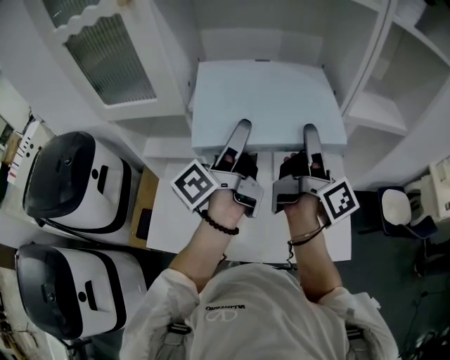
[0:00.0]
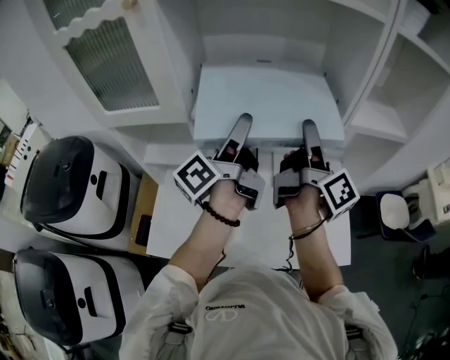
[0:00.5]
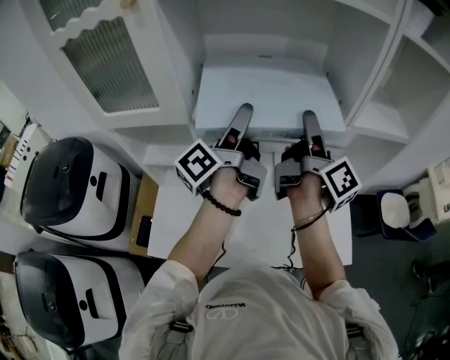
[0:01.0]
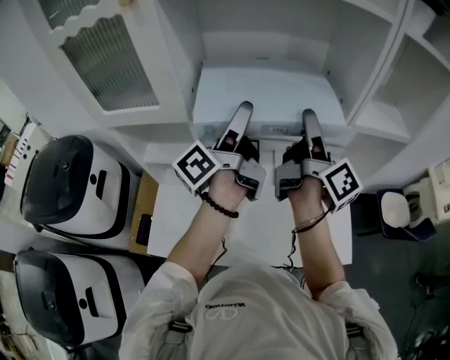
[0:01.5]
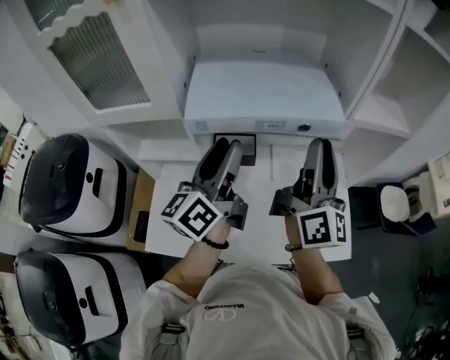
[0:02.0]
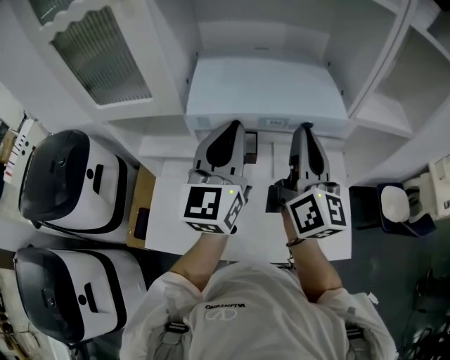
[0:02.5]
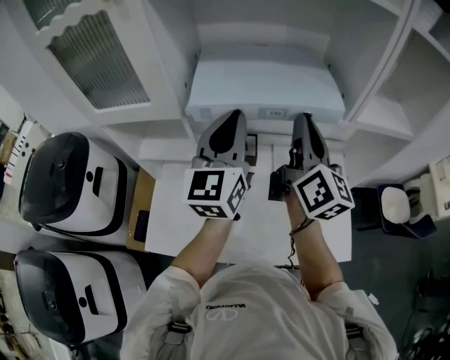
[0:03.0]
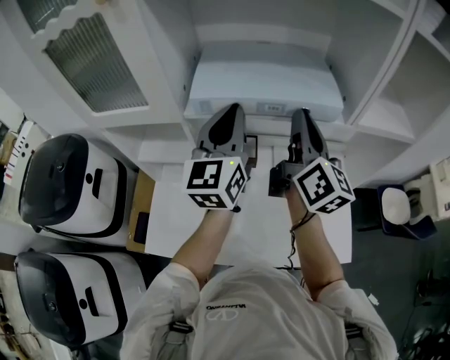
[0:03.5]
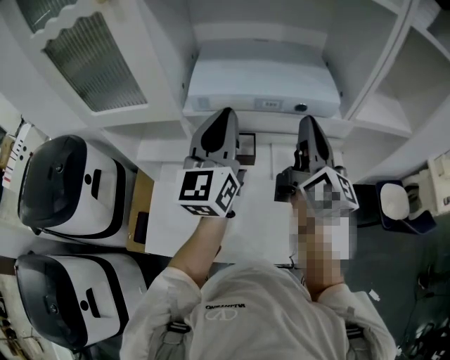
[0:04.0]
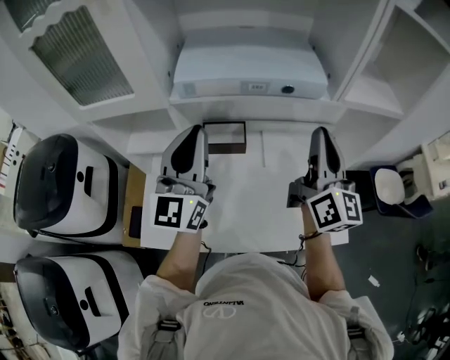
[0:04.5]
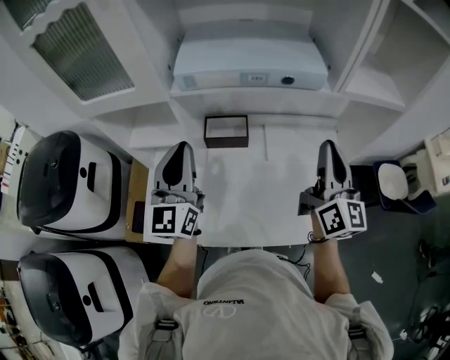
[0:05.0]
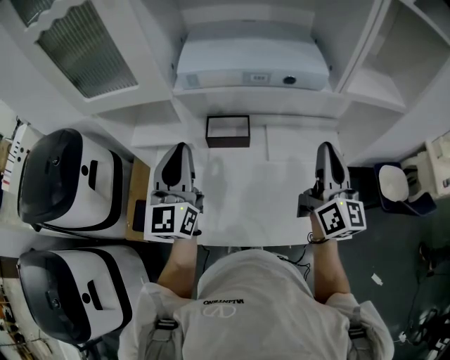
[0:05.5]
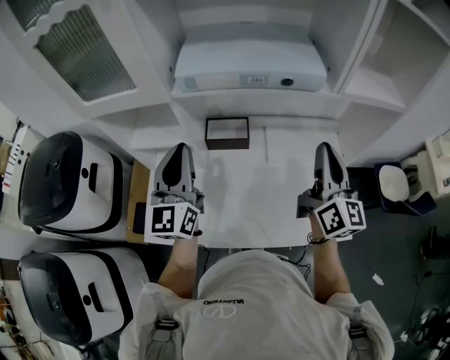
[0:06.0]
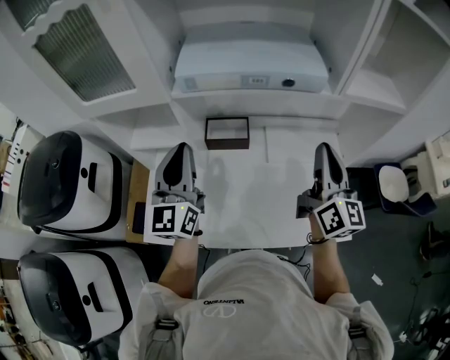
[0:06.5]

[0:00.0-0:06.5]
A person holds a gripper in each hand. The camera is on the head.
0:00.0 to 0:02.0: The right gripper goes forward and returns, about 5 cm each way, twists approximately 40 degrees counterclockwise, seen from behind, and closes up. The left gripper travels forward and back again, about 5 cm each way, and turns by roughly 40 degrees.
0:02.0 to 0:04.5: The left gripper goes forward and returns, about 10 cm each way, rotates around the line of its fingers by approximately 40 degrees, clockwise from behind, and closes up, while the right gripper travels forward and back again, roughly 10 cm each way.
0:04.5 to 0:06.5: The grippers both shift downward by some 5 cm.

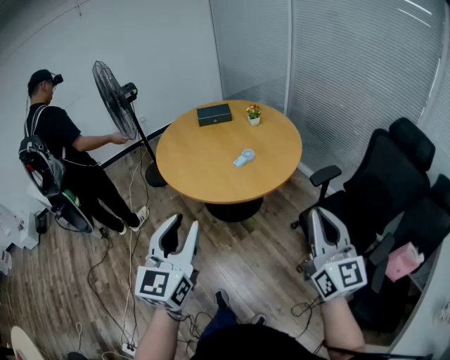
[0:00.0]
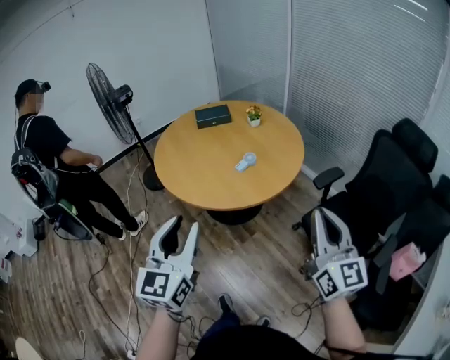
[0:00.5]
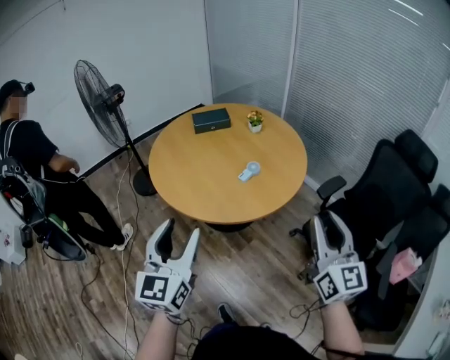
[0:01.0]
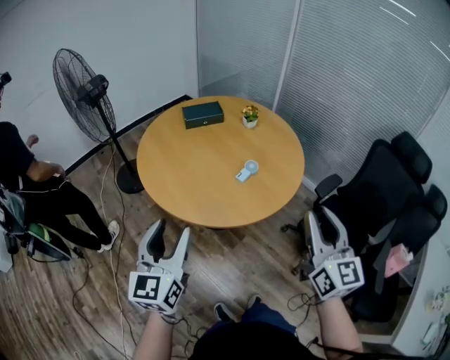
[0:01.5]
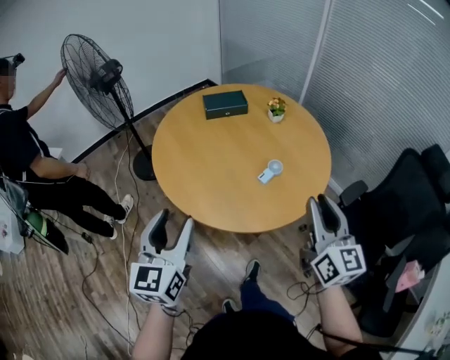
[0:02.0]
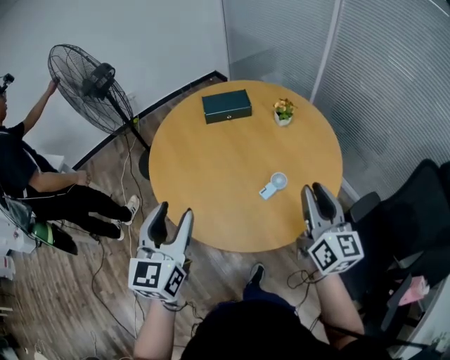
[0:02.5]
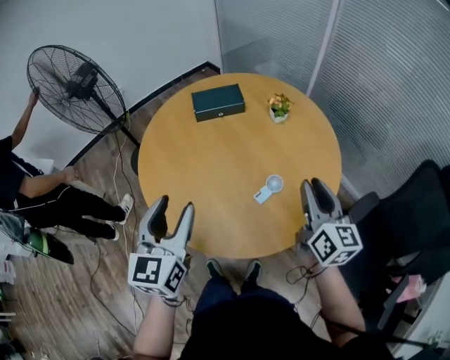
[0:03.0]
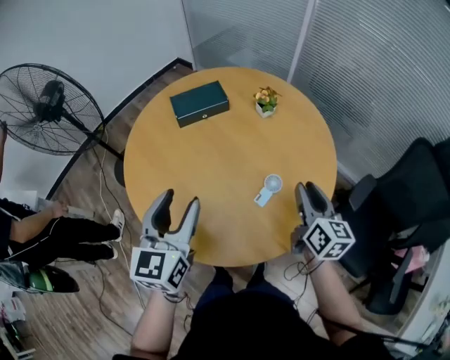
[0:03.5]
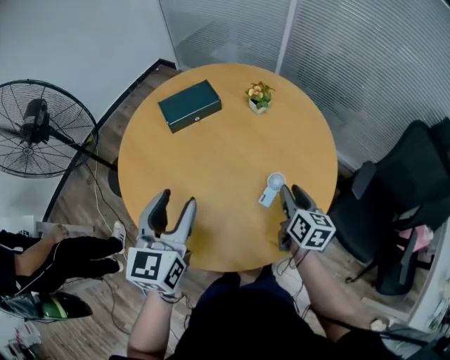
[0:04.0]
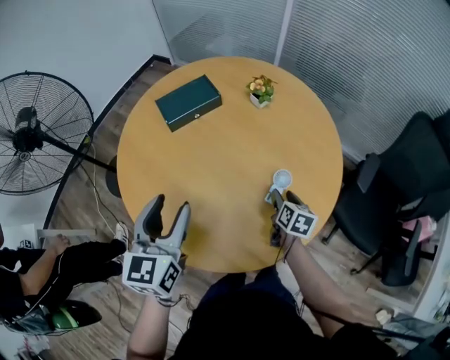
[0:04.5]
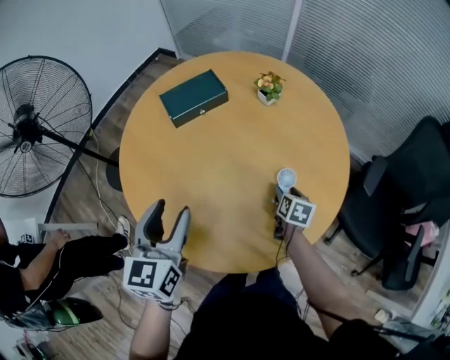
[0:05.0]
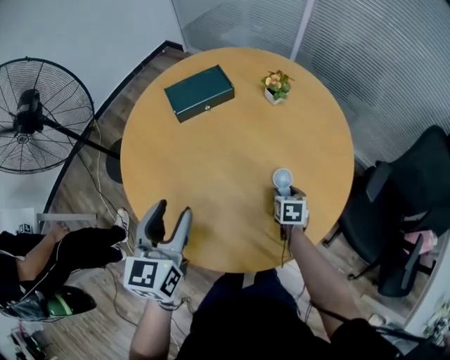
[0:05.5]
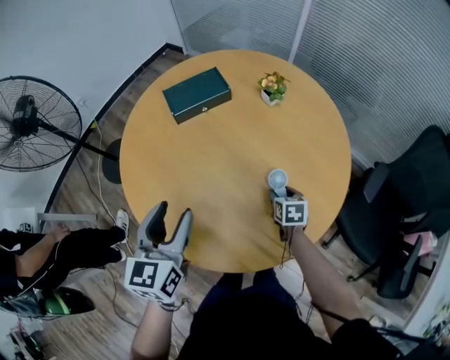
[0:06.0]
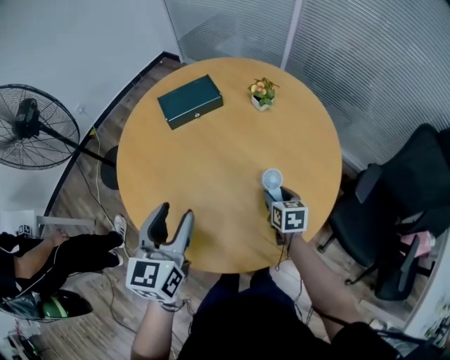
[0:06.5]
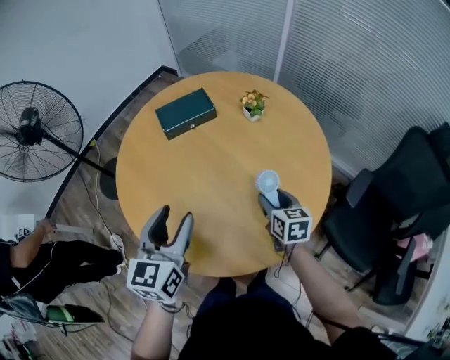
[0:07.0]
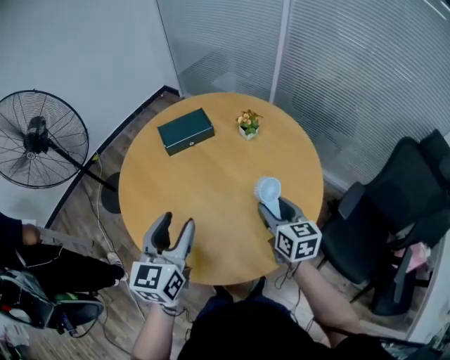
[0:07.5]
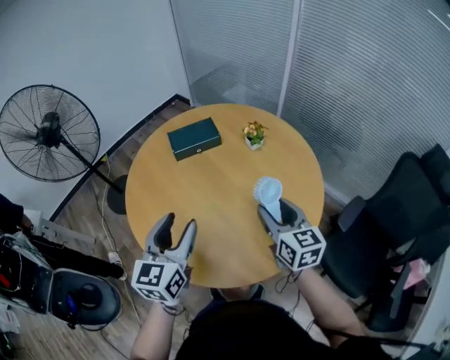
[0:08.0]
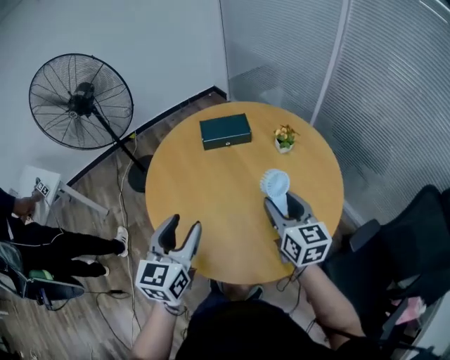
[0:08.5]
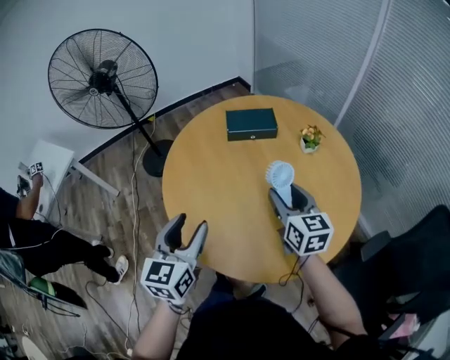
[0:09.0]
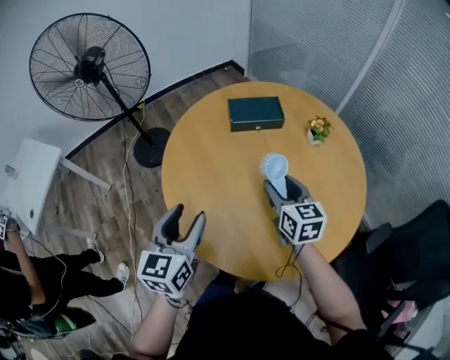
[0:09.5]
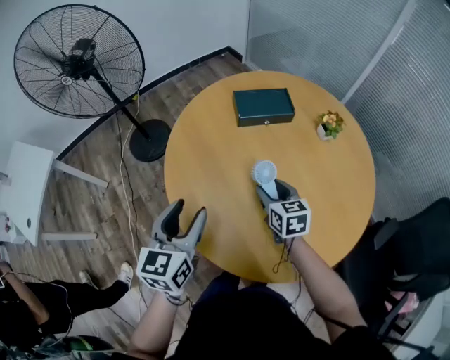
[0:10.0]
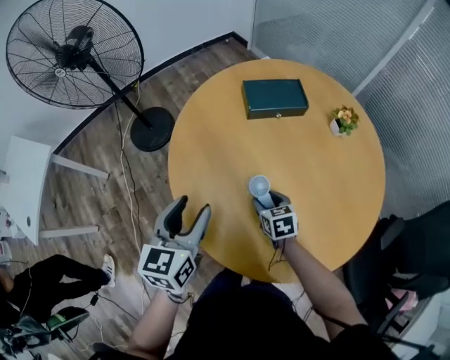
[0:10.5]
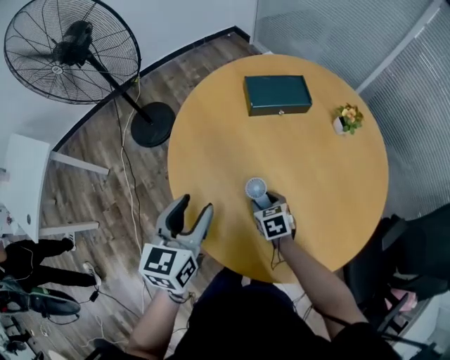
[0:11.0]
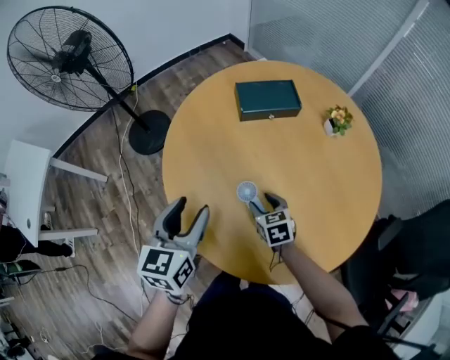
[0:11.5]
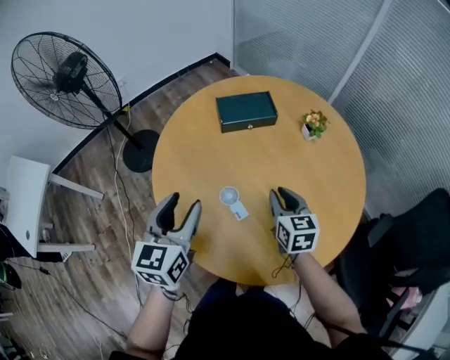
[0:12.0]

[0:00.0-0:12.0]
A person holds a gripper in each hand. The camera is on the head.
0:00.0 to 0:02.0: Both grippers move forward and to the left, approximately 40 cm. The left gripper opens. Meanwhile the right gripper opens.
0:02.0 to 0:04.0: The left gripper moves forward, approximately 35 cm, and turns by approximately 20 degrees, while the right gripper shifts roughly 40 cm forward and downward, and turns by roughly 40 degrees.
0:04.0 to 0:06.0: The left gripper shifts approximately 5 cm downward, while the right gripper heads downward, covering some 15 cm, and changes its angle by approximately 30 degrees.
0:06.0 to 0:08.0: The left gripper goes approximately 15 cm upward, to the right and backward. Meanwhile the right gripper heads upward, covering some 30 cm, and points its fingers approximately 40 degrees further upward.
0:08.0 to 0:10.0: The right gripper is displaced to the left, downward and forward by roughly 30 cm, and rotates some 20 degrees. Meanwhile the left gripper heads to the left, covering about 20 cm.
0:10.0 to 0:12.0: The left gripper moves about 5 cm; the right gripper shifts some 10 cm to the right, moves about 15 cm downward and comes back, and closes up.

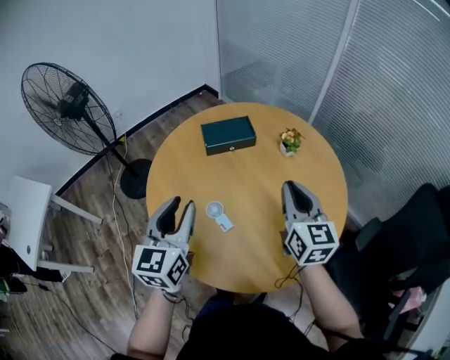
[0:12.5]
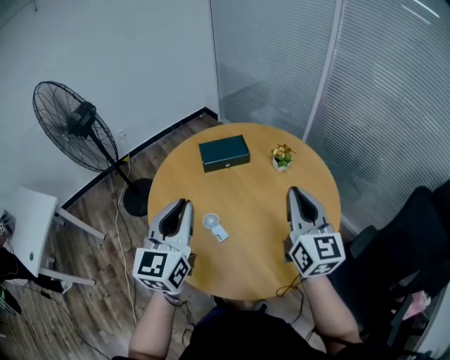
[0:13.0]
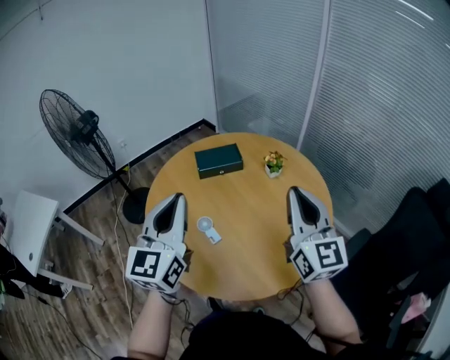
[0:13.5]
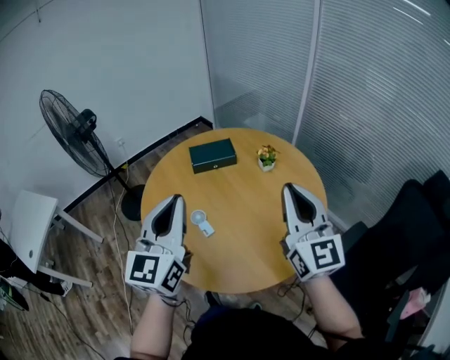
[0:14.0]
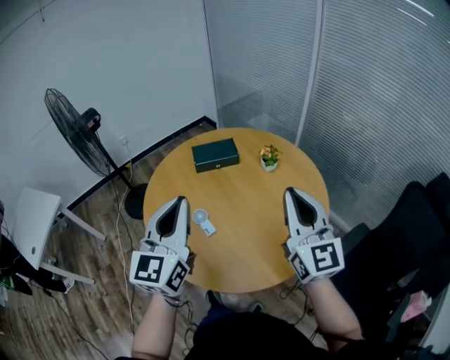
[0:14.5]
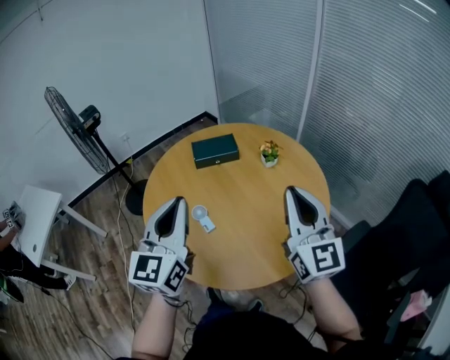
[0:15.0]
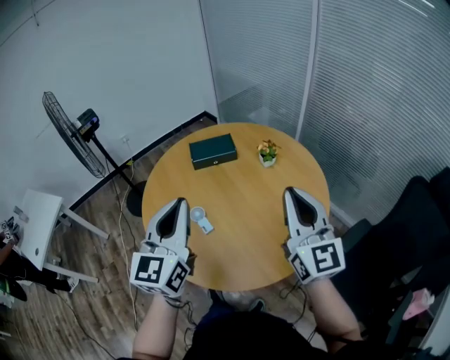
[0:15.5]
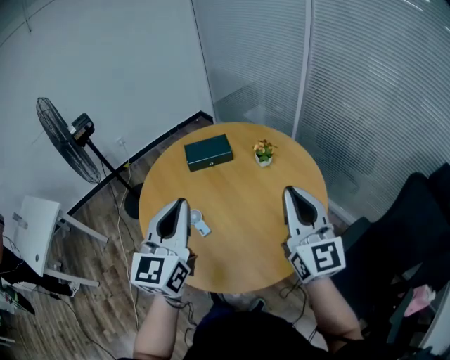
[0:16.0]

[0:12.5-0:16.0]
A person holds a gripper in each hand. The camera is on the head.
0:12.5 to 0:14.5: The right gripper shifts about 20 cm backward, upward and to the right, and turns by approximately 20 degrees, while the left gripper moves upward, to the right and backward, some 20 cm, and closes up.
0:14.5 to 0:16.0: The left gripper moves about 5 cm.

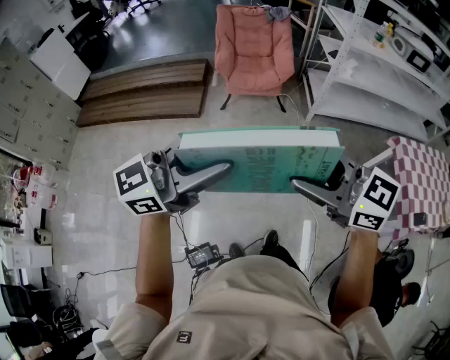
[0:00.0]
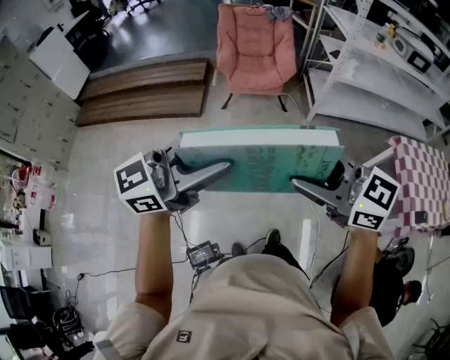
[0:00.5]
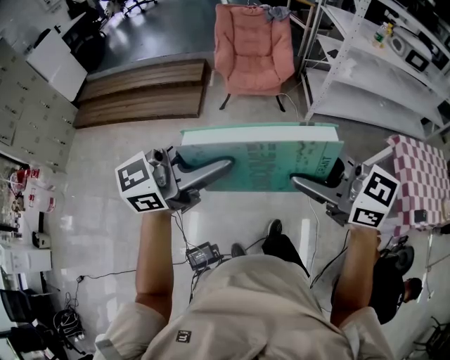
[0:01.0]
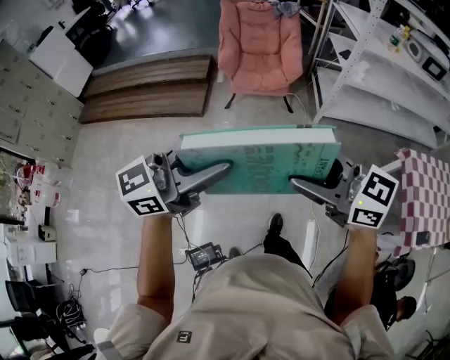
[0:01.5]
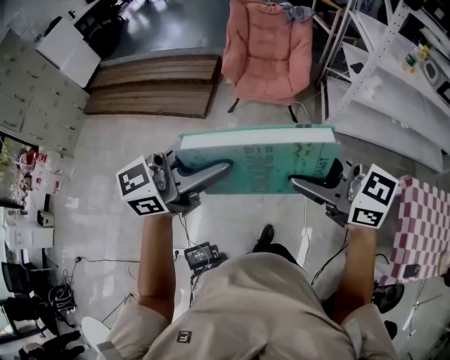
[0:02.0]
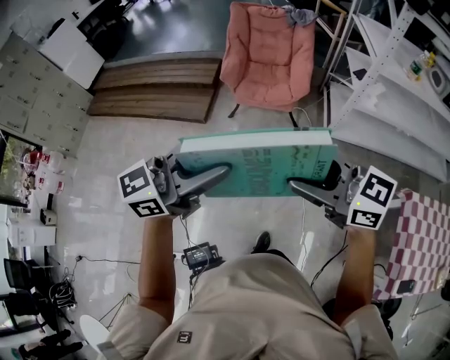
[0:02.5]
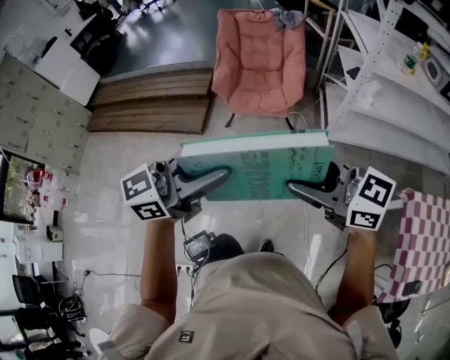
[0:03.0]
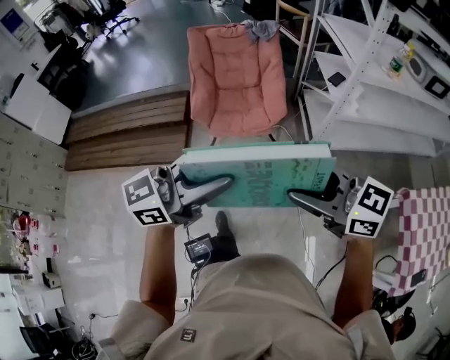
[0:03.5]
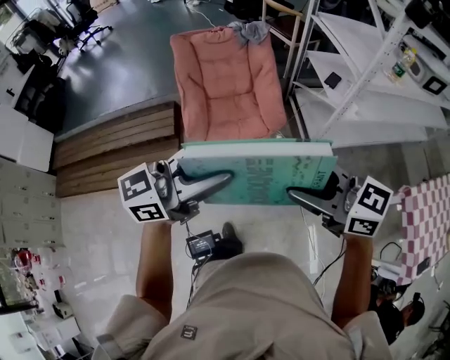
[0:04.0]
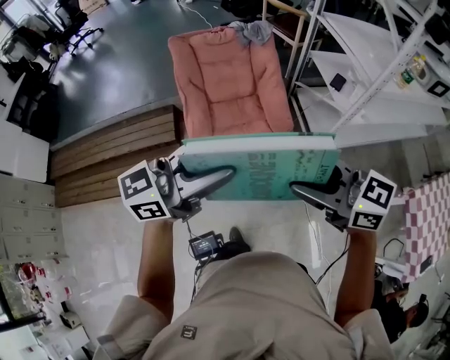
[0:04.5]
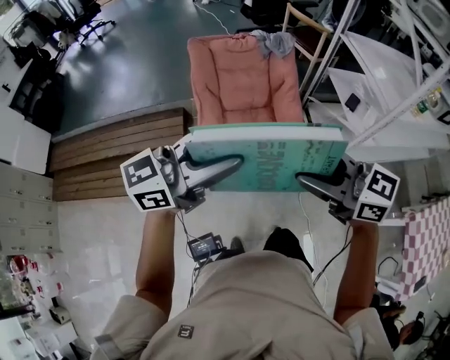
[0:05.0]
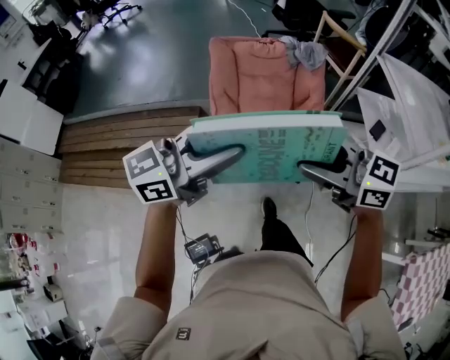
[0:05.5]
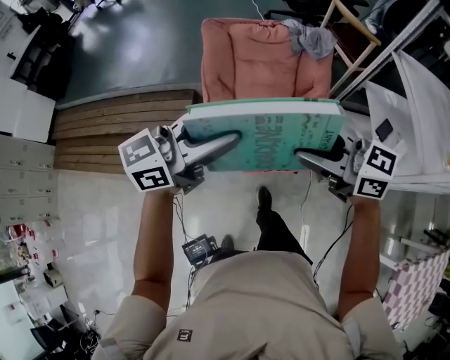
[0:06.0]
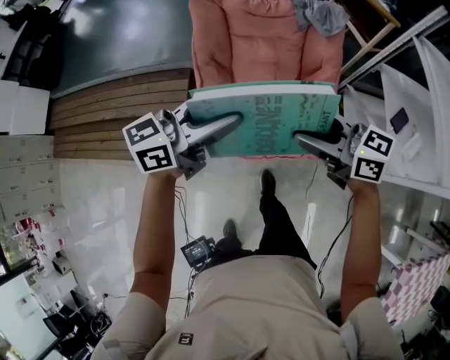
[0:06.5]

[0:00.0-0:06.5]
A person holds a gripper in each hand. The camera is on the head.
0:00.0 to 0:02.0: The right gripper ends up about 25 cm from where it was. The left gripper changes place by some 25 cm.
0:02.0 to 0:04.5: The two grippers travel together, roughly 50 cm. The right gripper changes its angle by about 20 degrees; the left gripper turns by roughly 20 degrees.
0:04.5 to 0:06.5: The right gripper shifts by roughly 40 cm; the left gripper changes place by some 40 cm, and swivels roughly 20 degrees.
